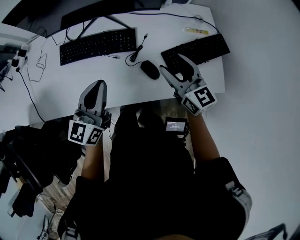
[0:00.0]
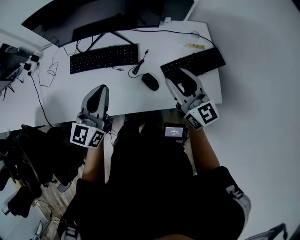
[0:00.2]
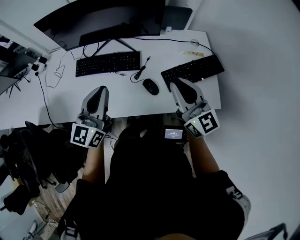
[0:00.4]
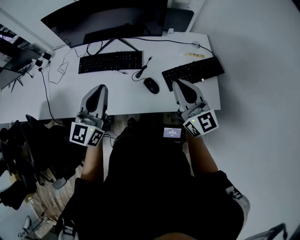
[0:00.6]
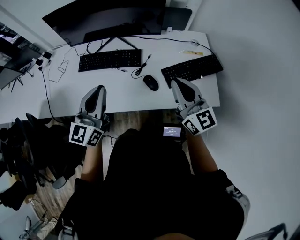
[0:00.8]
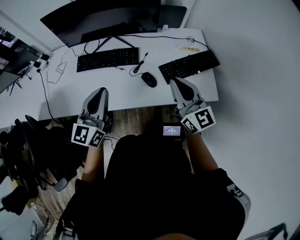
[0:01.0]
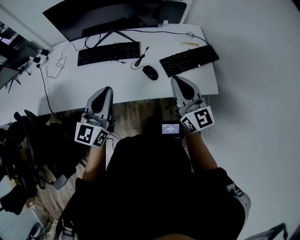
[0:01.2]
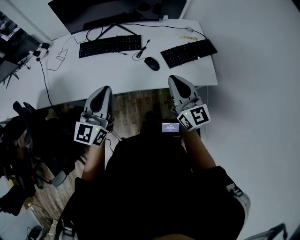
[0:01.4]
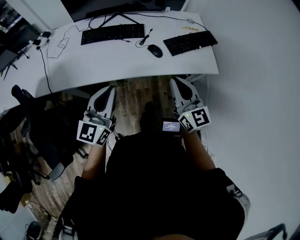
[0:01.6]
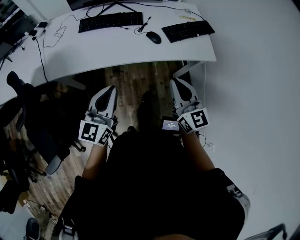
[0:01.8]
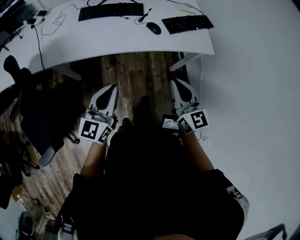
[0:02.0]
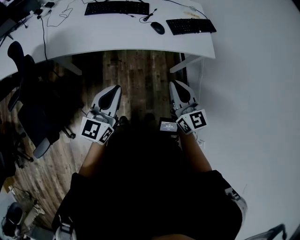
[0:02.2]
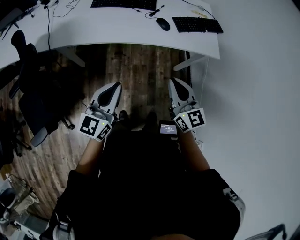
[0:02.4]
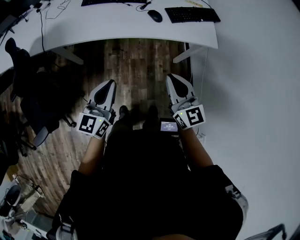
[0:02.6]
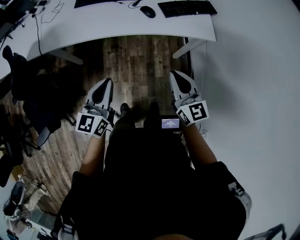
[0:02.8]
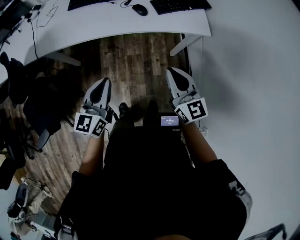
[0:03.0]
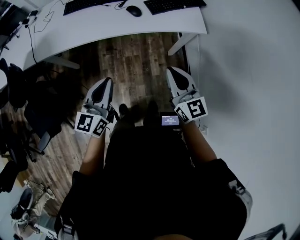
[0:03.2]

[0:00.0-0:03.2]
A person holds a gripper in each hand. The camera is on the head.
0:00.0 to 0:01.6: The grippers both shift backward by approximately 25 cm. The right gripper closes up.
0:01.6 to 0:03.2: The left gripper goes approximately 20 cm backward, to the right and downward. The right gripper travels backward and to the right by roughly 20 cm.

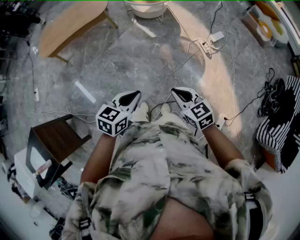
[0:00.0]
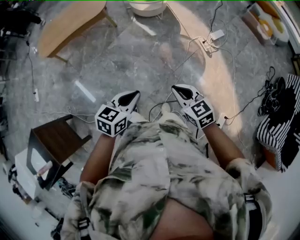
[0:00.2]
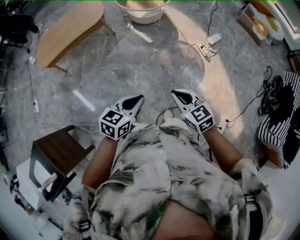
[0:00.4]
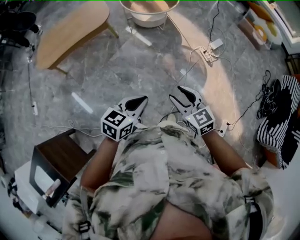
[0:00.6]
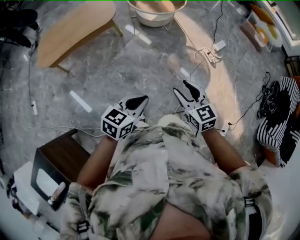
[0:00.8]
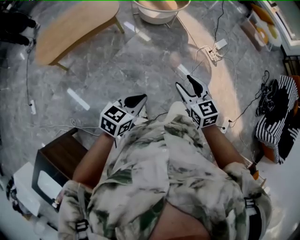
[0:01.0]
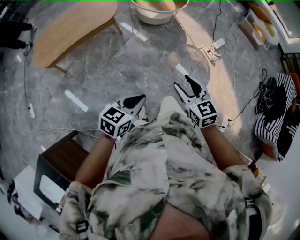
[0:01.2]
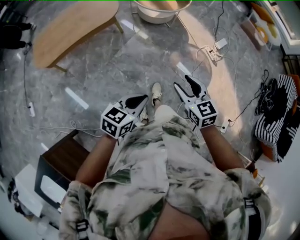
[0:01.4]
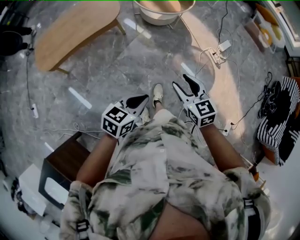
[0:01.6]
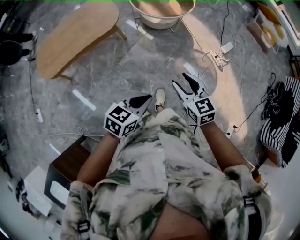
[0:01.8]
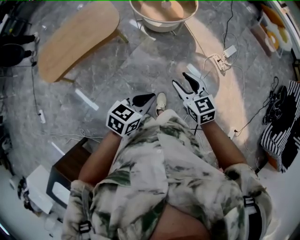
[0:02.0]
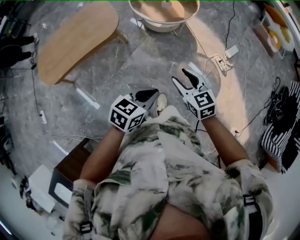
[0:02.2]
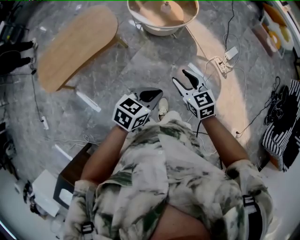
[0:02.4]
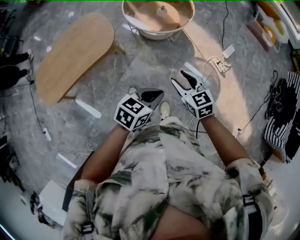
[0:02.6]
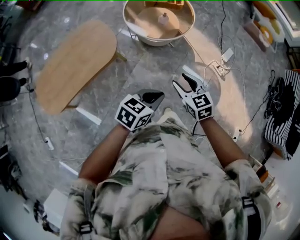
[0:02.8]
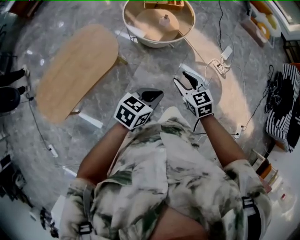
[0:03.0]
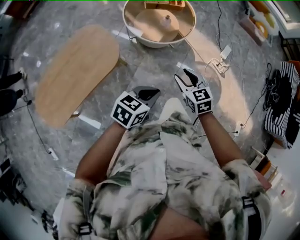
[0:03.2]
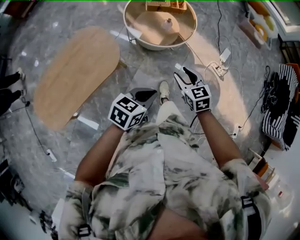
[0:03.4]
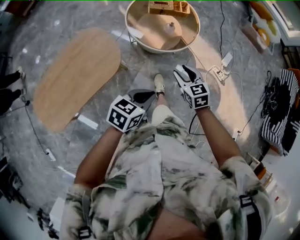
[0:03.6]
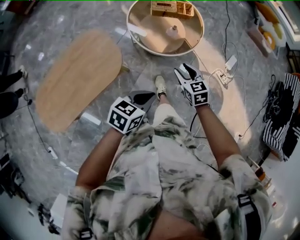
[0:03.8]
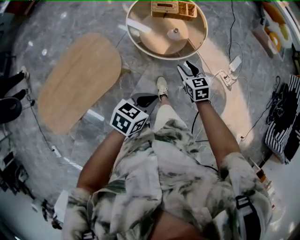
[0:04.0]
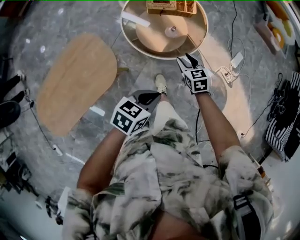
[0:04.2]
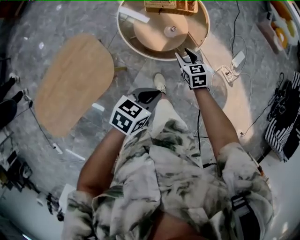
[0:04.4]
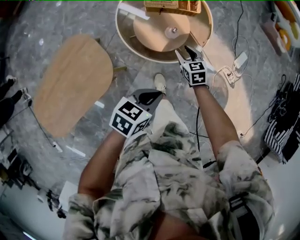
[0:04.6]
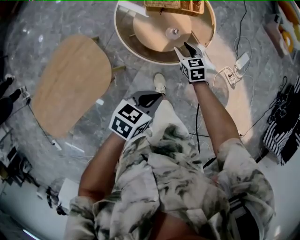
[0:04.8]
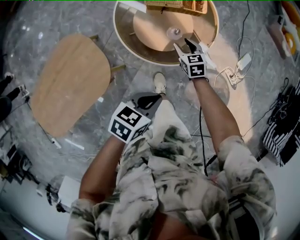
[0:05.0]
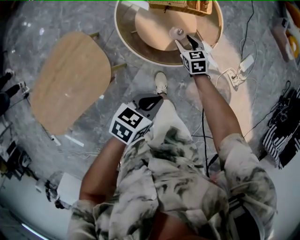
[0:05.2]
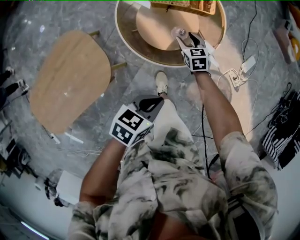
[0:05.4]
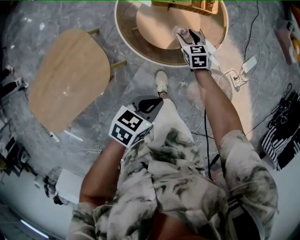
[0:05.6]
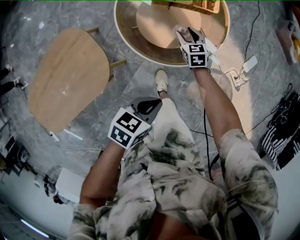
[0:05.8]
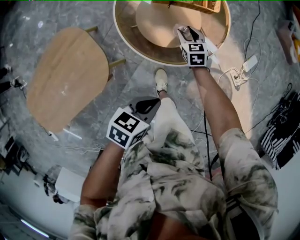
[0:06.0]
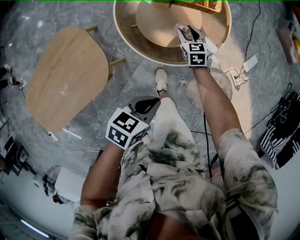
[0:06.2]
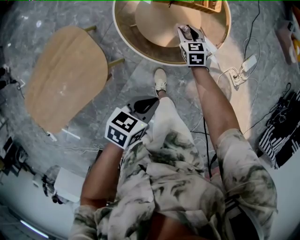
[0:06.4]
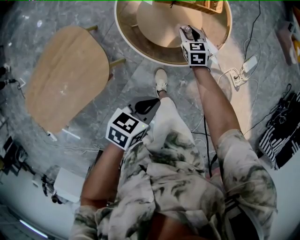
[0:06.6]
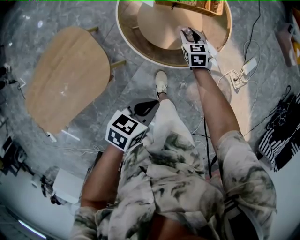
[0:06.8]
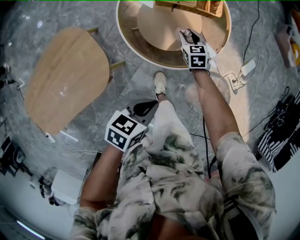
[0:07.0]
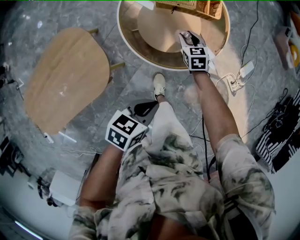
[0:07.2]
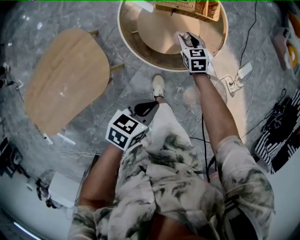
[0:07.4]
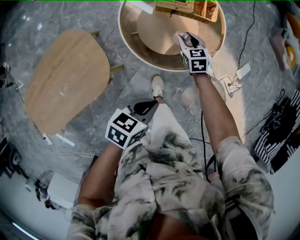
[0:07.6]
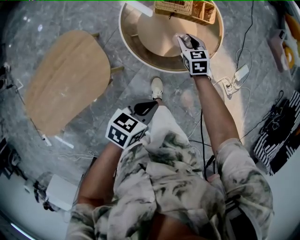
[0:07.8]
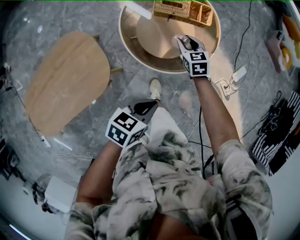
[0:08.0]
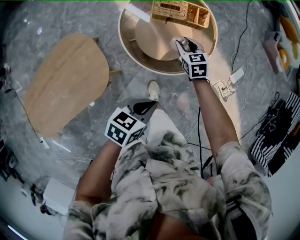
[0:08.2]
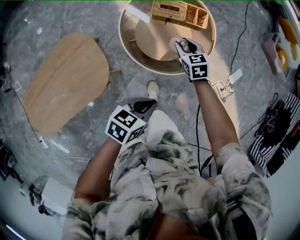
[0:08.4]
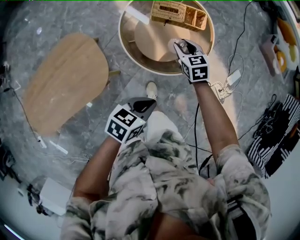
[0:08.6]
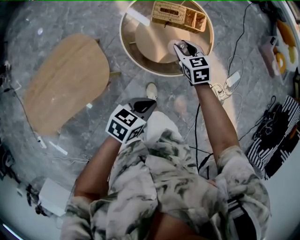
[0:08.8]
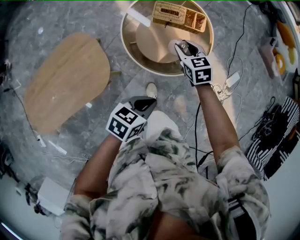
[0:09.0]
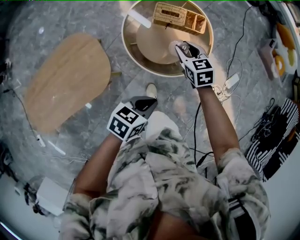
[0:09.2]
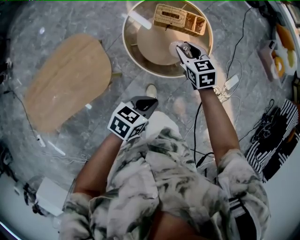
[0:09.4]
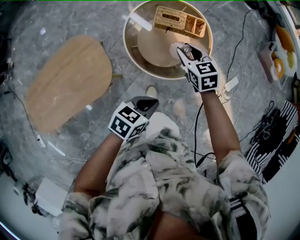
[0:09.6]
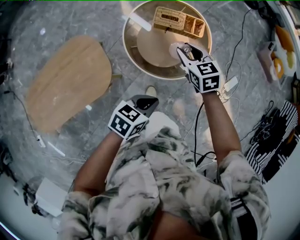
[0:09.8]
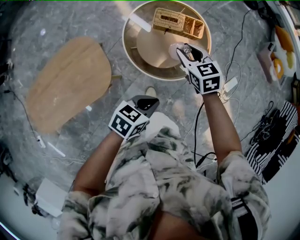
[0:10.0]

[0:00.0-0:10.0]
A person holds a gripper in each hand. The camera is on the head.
0:00.0 to 0:01.4: Both grippers move to the left and forward, roughly 30 cm. The right gripper opens.
0:01.4 to 0:02.8: Both grippers travel together forward, some 35 cm.
0:02.8 to 0:04.2: The left gripper is displaced forward and to the left by roughly 30 cm. Meanwhile the right gripper heads forward and downward, covering about 40 cm.
0:04.2 to 0:05.8: The left gripper goes some 15 cm downward and forward, while the right gripper is displaced downward and forward by approximately 25 cm.
0:05.8 to 0:07.2: The grippers stay close to where they were, moving slightly.
0:07.2 to 0:08.6: The left gripper shifts roughly 5 cm upward; the right gripper goes roughly 15 cm upward.
0:08.6 to 0:10.0: The right gripper heads upward, covering some 15 cm.

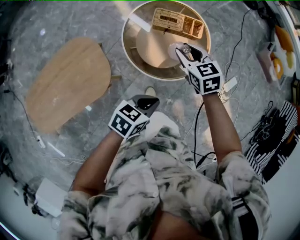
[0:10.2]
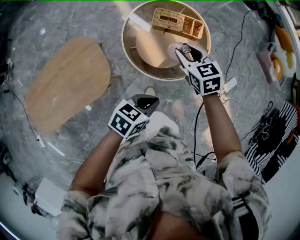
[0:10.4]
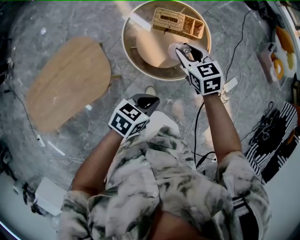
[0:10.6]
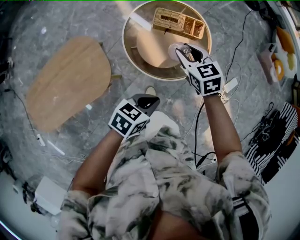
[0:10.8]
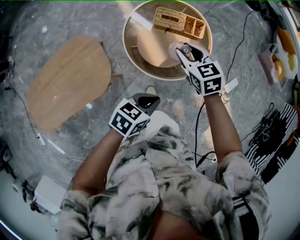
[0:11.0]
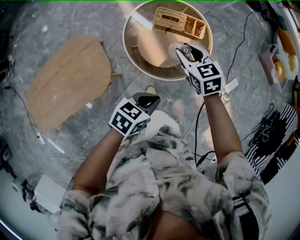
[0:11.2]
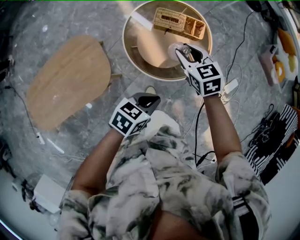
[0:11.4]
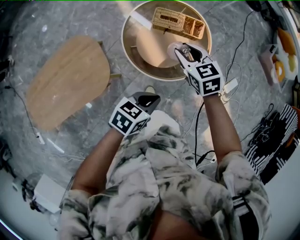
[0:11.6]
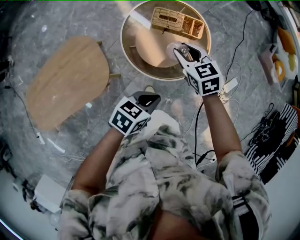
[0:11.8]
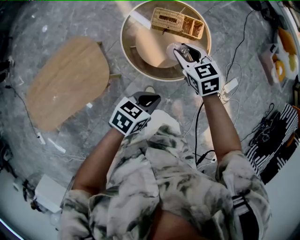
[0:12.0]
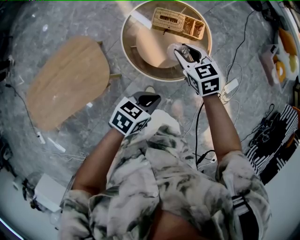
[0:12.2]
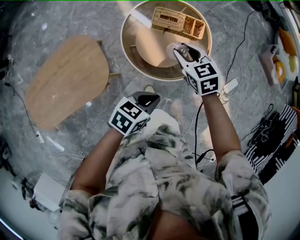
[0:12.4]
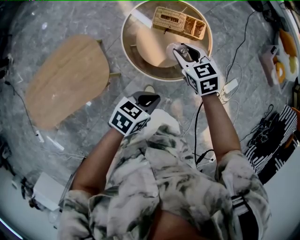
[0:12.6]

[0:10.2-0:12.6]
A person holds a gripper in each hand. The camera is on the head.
0:10.2 to 0:12.6: There are only small adjustments of the grippers.

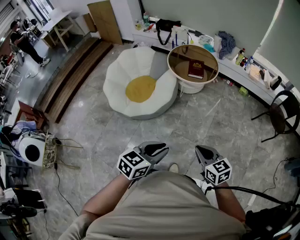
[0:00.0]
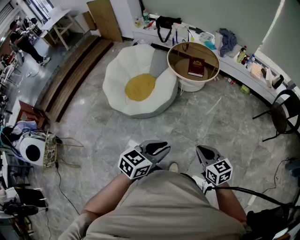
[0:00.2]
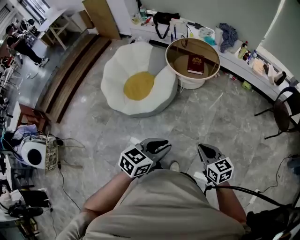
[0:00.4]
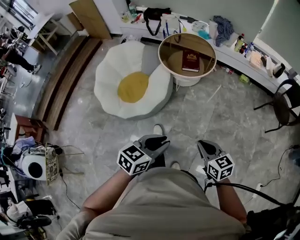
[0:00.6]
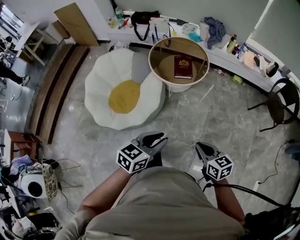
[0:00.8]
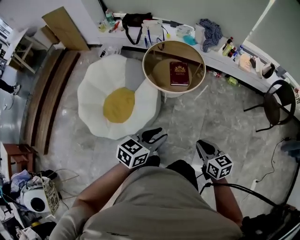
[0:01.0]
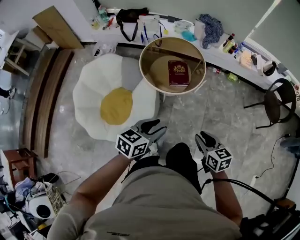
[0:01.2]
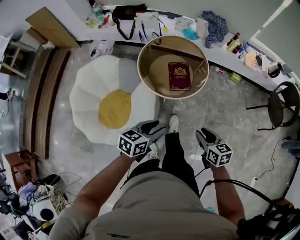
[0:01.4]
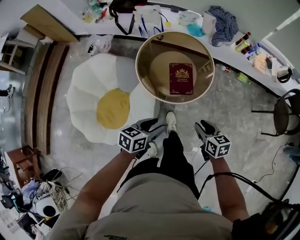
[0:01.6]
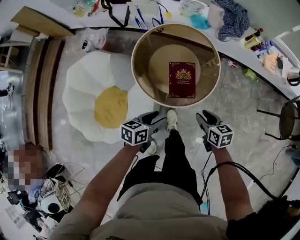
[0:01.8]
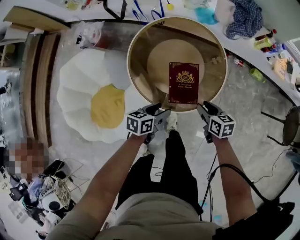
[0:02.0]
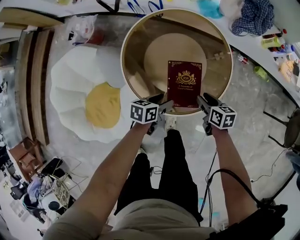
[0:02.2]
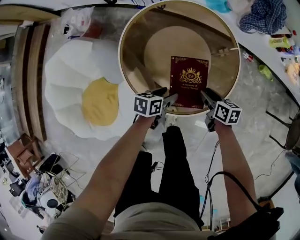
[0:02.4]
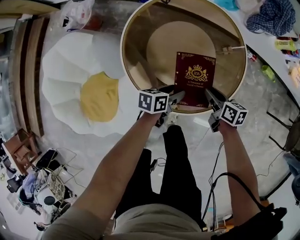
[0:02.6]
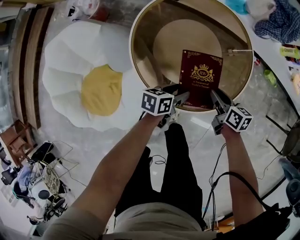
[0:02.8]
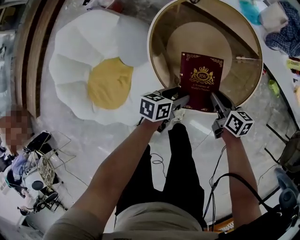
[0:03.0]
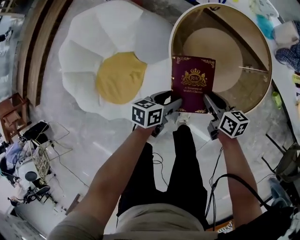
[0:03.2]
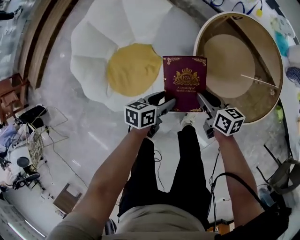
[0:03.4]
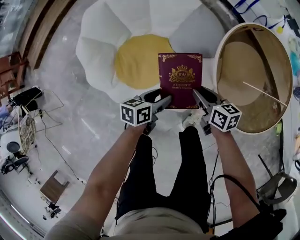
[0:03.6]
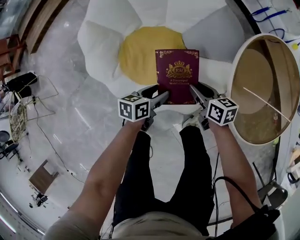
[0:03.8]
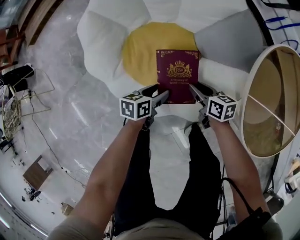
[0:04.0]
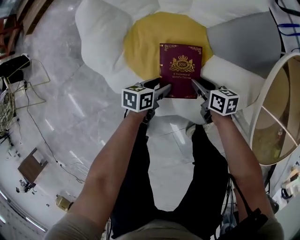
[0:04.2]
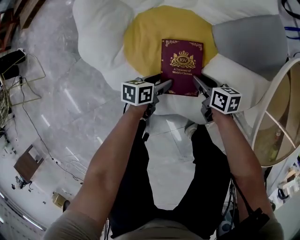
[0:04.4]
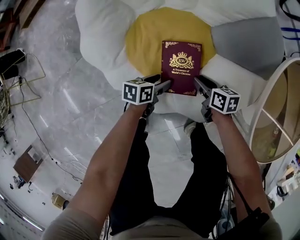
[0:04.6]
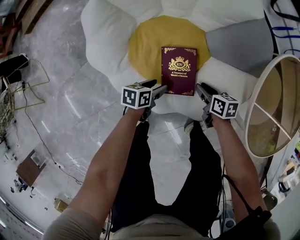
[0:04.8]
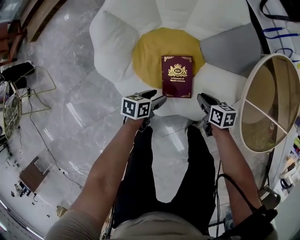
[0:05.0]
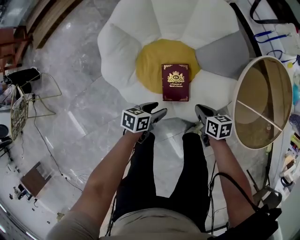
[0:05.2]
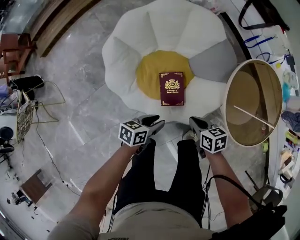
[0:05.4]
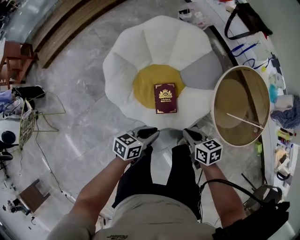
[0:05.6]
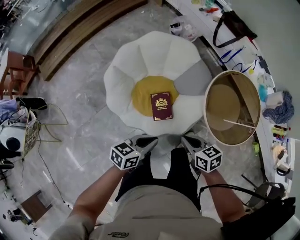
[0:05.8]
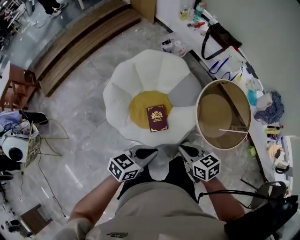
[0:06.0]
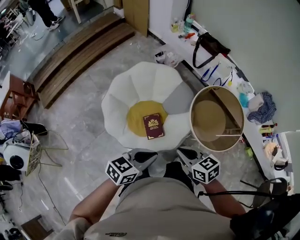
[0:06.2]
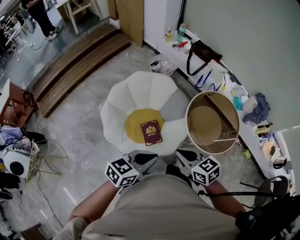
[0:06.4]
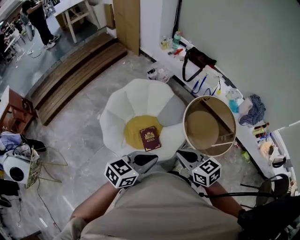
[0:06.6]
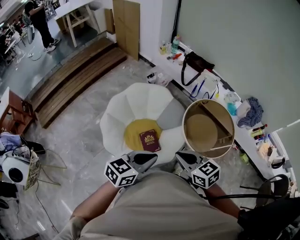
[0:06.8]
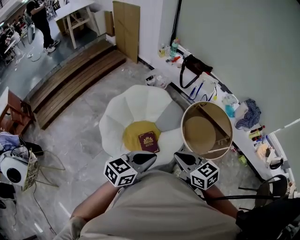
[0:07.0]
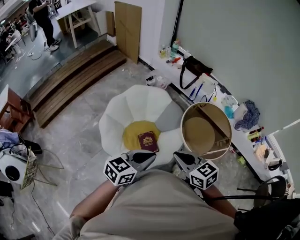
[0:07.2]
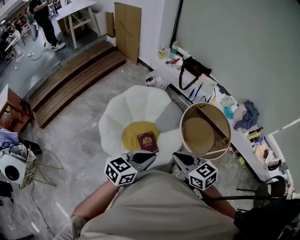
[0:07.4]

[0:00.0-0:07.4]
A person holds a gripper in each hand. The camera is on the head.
0:00.0 to 0:01.4: Both grippers are carried forward, roughly 50 cm. The right gripper turns by some 30 degrees, and opens.
0:01.4 to 0:03.0: The left gripper moves downward and forward, roughly 40 cm, swivels about 30 degrees, and opens up. The right gripper moves forward and downward, roughly 40 cm, and rotates approximately 20 degrees.
0:03.0 to 0:04.4: The two grippers travel together, about 40 cm. The left gripper changes its angle by some 40 degrees. Meanwhile the right gripper rotates some 40 degrees.
0:04.4 to 0:06.0: The grippers both shift upward by about 60 cm. The right gripper turns by roughly 20 degrees, and closes; the left gripper swivels some 40 degrees, and closes.
0:06.0 to 0:07.4: Both grippers travel together upward, roughly 15 cm. The right gripper rotates roughly 20 degrees.
